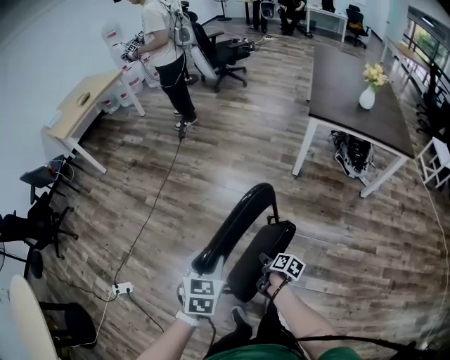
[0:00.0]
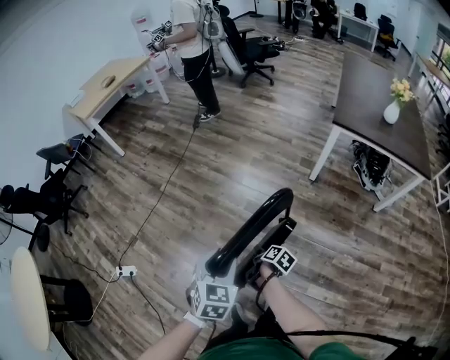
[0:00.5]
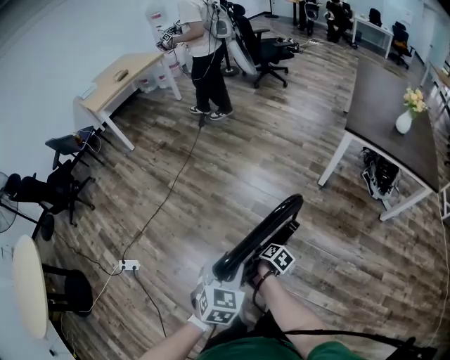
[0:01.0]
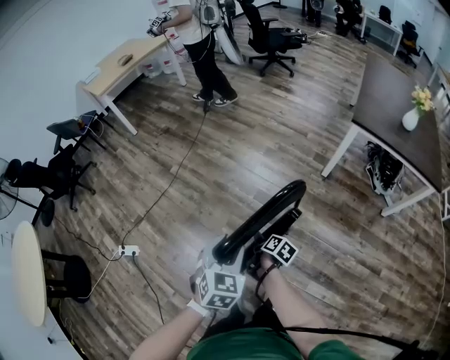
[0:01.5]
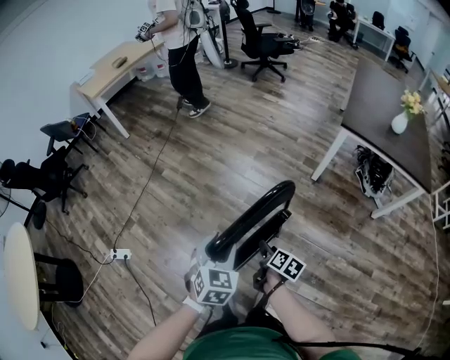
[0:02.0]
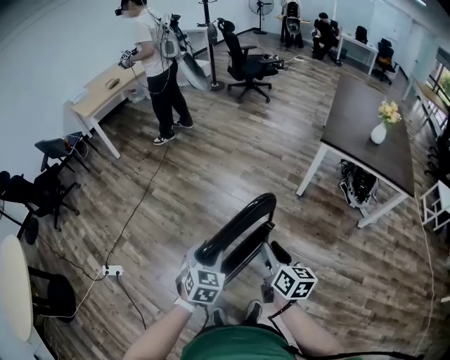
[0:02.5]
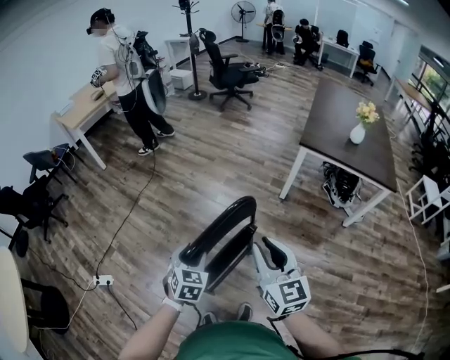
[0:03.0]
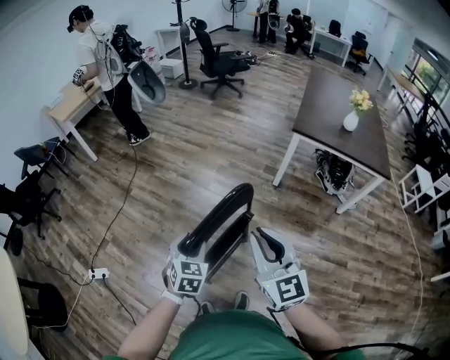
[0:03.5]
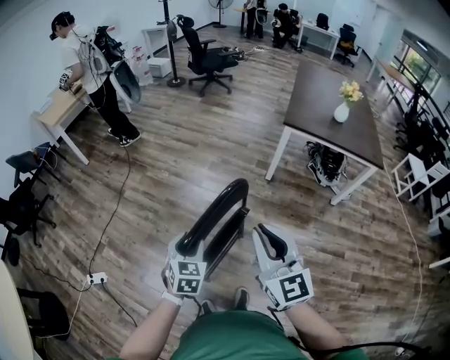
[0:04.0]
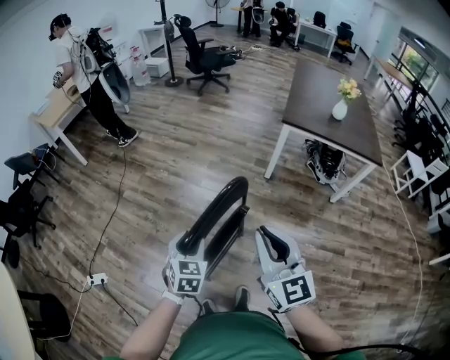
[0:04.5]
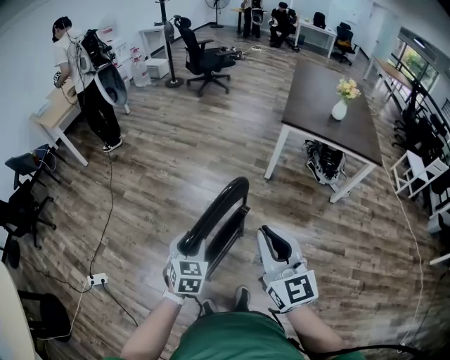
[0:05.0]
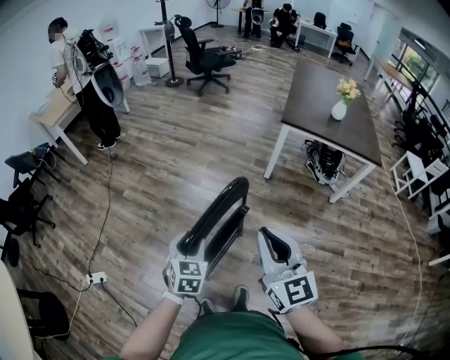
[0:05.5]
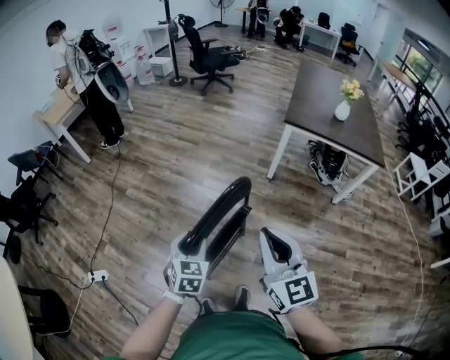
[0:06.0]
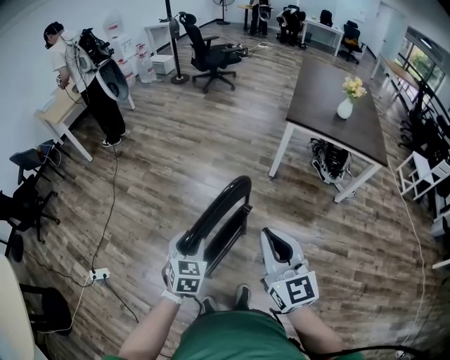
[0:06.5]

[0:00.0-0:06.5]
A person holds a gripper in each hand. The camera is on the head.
0:00.0 to 0:02.0: The right gripper shifts roughly 10 cm upward.
0:02.0 to 0:04.5: The right gripper moves upward, about 35 cm, twists approximately 60 degrees counterclockwise, seen from behind, and closes its fingers.
0:04.5 to 0:06.5: The grippers make only small movements.

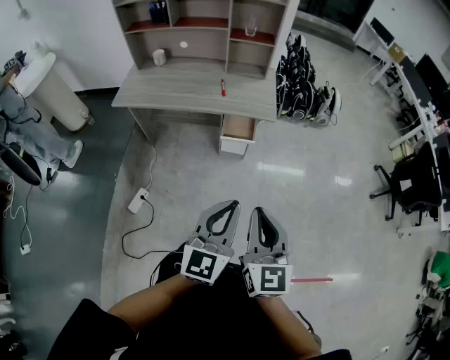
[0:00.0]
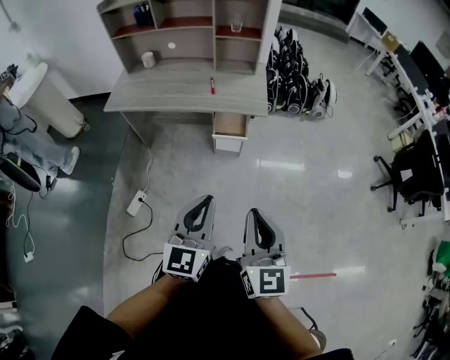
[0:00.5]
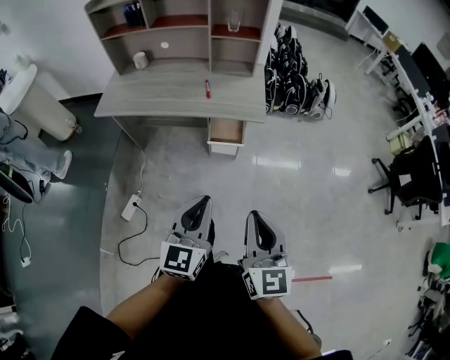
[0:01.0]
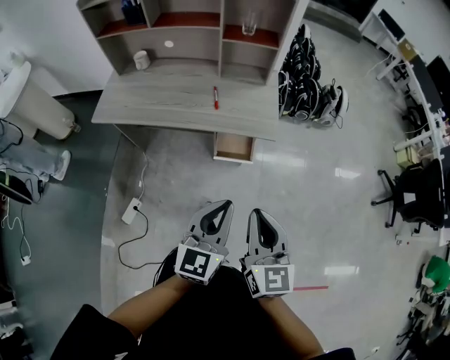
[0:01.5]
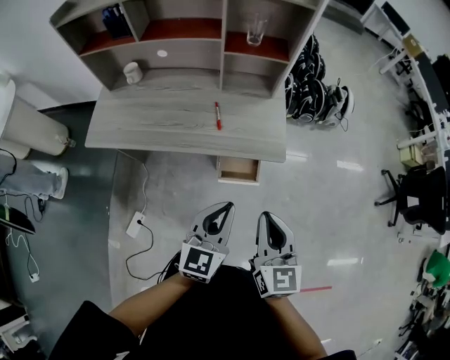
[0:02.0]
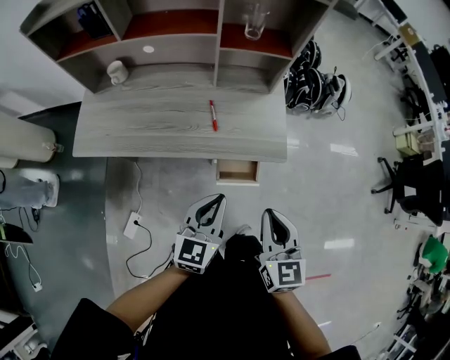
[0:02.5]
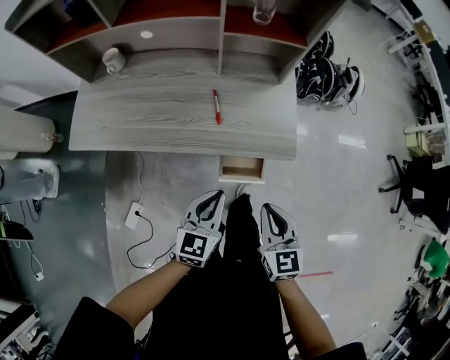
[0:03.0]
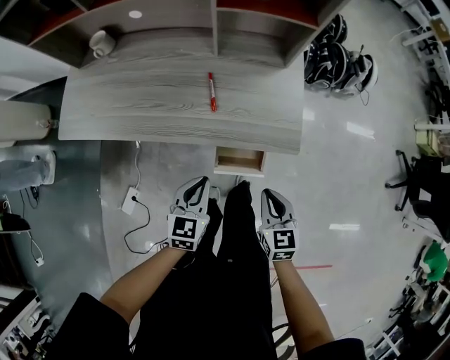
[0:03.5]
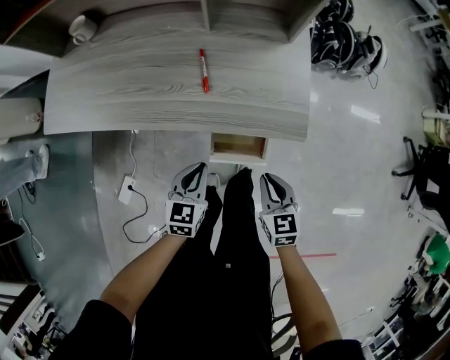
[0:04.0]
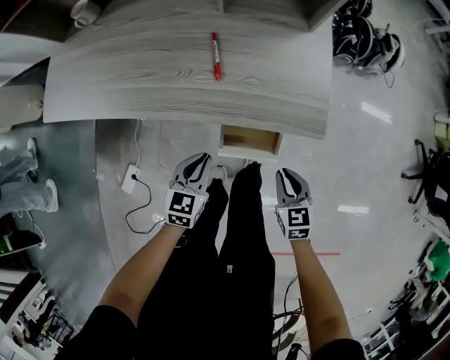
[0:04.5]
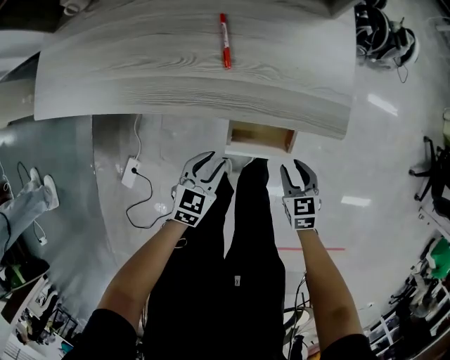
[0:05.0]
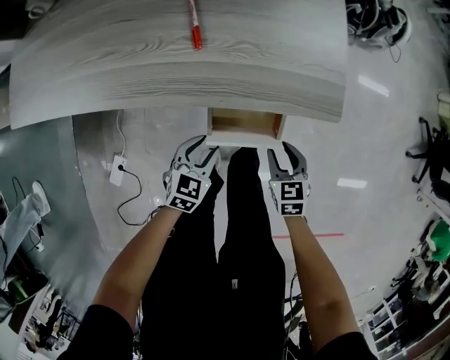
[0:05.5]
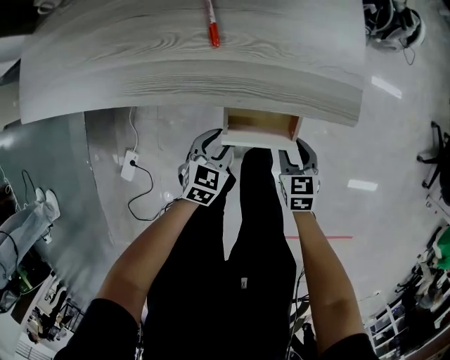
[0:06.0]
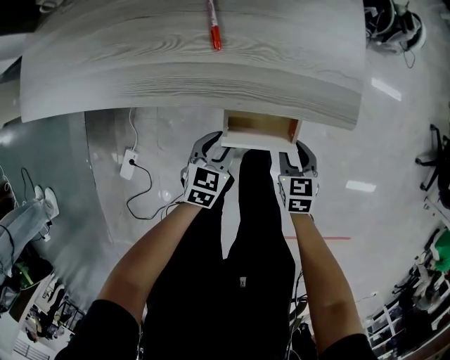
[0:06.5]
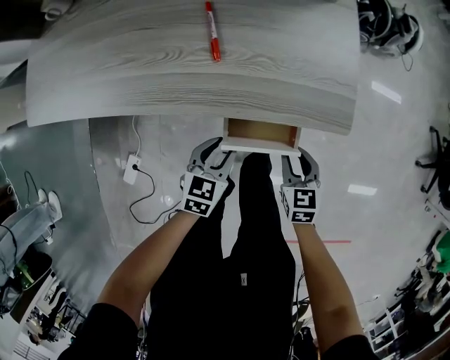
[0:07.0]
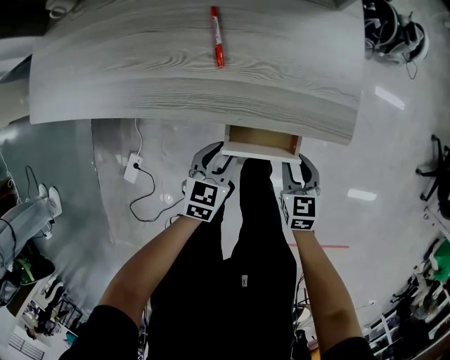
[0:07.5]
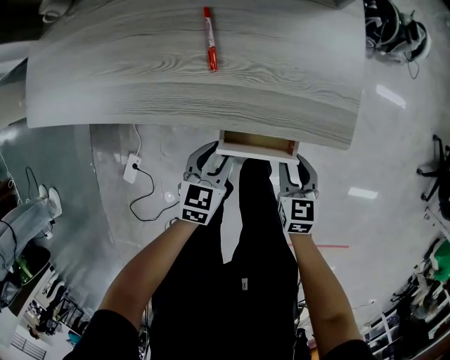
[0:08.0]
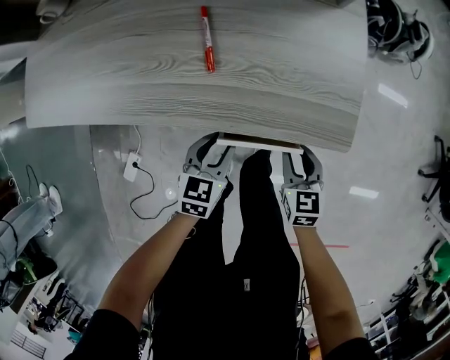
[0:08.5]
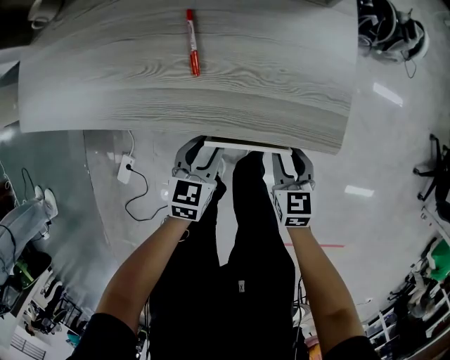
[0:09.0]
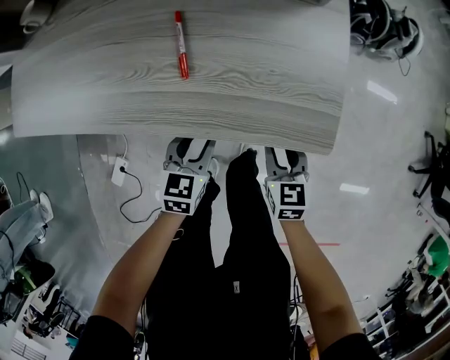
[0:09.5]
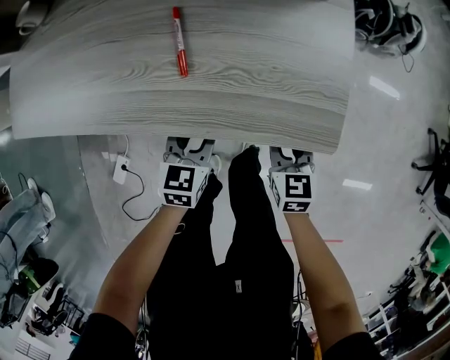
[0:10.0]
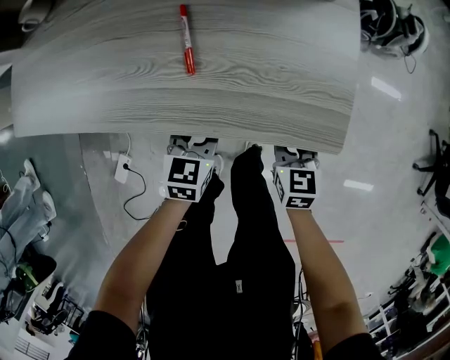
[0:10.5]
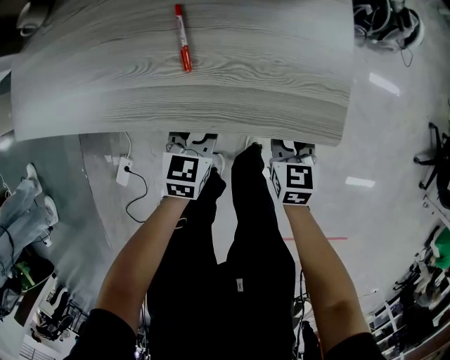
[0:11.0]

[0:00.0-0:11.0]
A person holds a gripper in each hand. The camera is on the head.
0:00.0 to 0:02.0: The two grippers go some 35 cm forward.
0:02.0 to 0:03.5: The left gripper moves downward and forward, approximately 25 cm, and rotates some 20 degrees. The right gripper heads downward, covering some 25 cm, and rotates roughly 20 degrees.
0:03.5 to 0:05.5: The two grippers go some 25 cm downward. The left gripper turns by approximately 20 degrees, and opens its fingers. The right gripper opens up.
0:05.5 to 0:07.5: The left gripper changes place by about 5 cm.
0:07.5 to 0:09.0: There are only small adjustments of the grippers.
0:09.0 to 0:11.0: Both grippers travel together forward, roughly 5 cm.

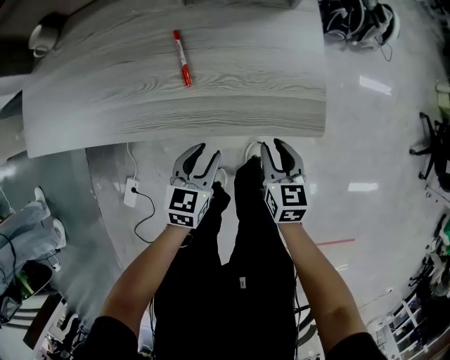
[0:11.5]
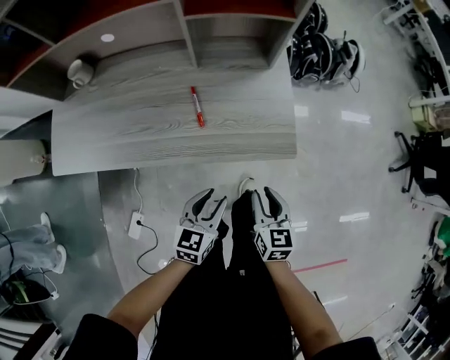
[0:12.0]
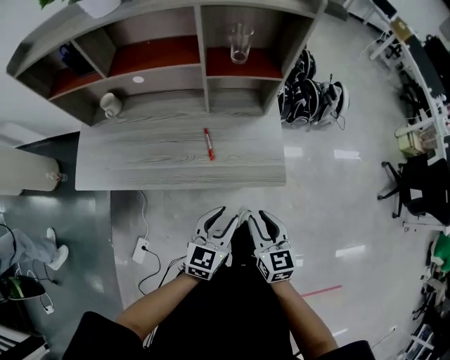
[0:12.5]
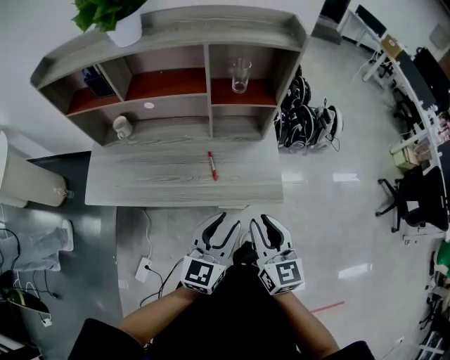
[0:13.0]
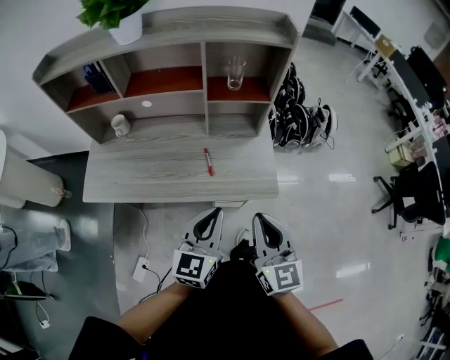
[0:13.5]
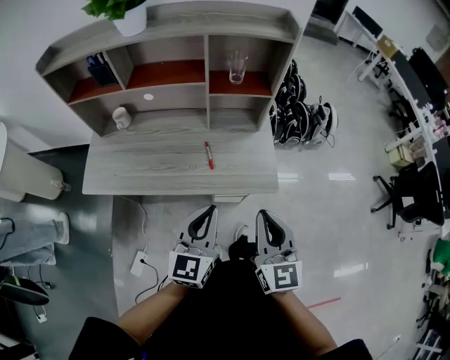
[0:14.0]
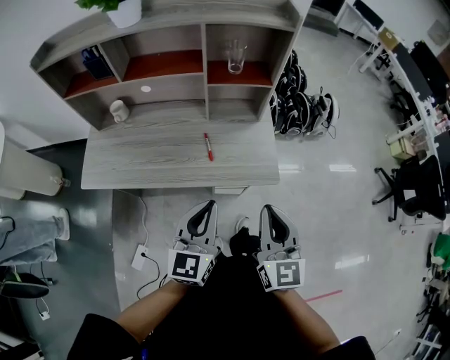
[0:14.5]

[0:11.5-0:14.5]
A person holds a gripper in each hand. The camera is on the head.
0:11.5 to 0:13.0: The grippers both shift upward by about 40 cm. The right gripper rotates roughly 30 degrees; the left gripper rotates some 30 degrees.
0:13.0 to 0:14.5: The left gripper moves roughly 5 cm, and closes up, while the right gripper moves about 5 cm, and closes up.

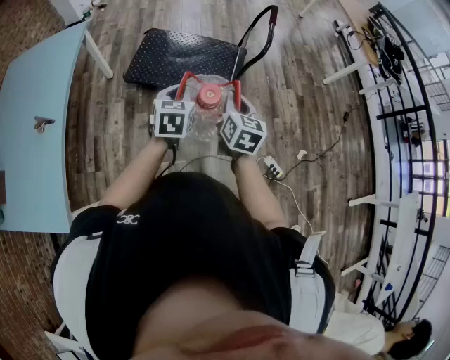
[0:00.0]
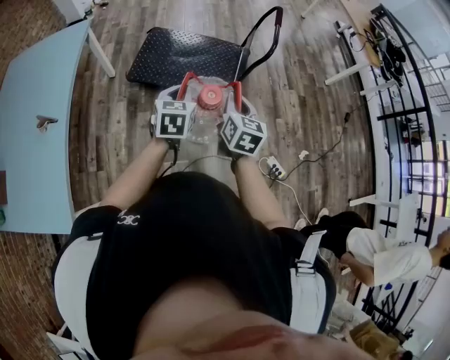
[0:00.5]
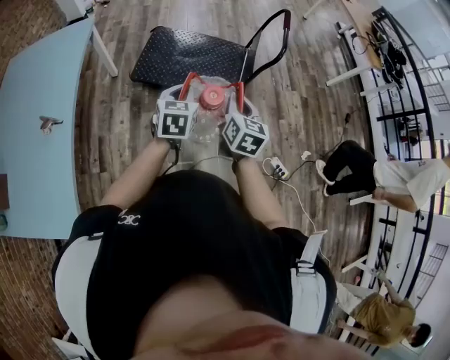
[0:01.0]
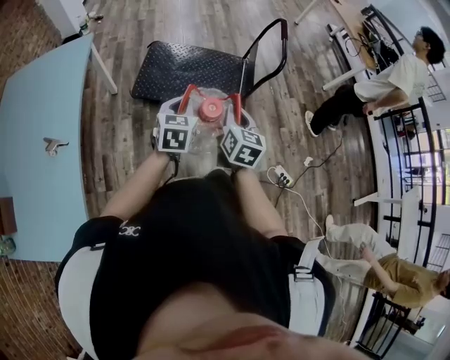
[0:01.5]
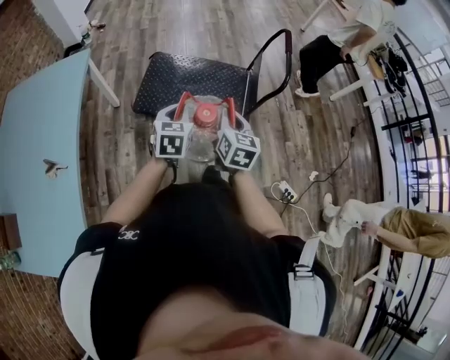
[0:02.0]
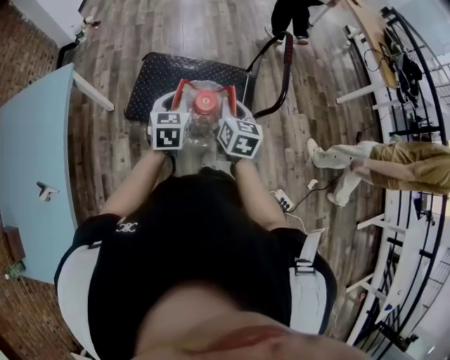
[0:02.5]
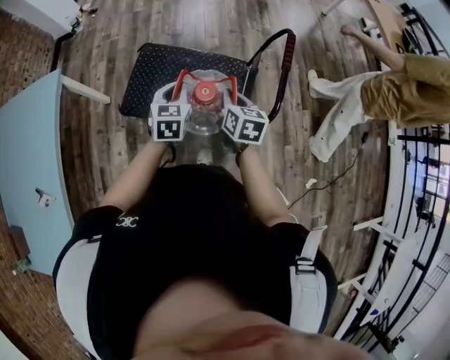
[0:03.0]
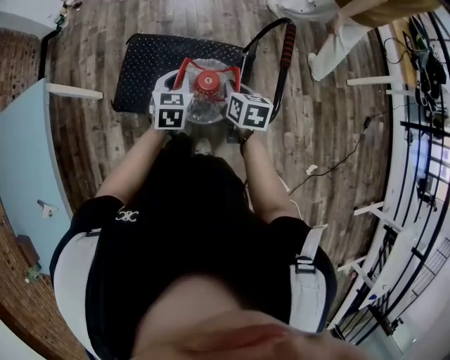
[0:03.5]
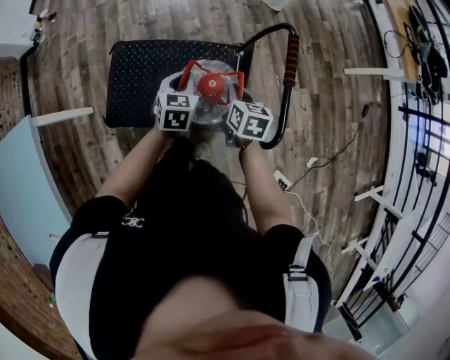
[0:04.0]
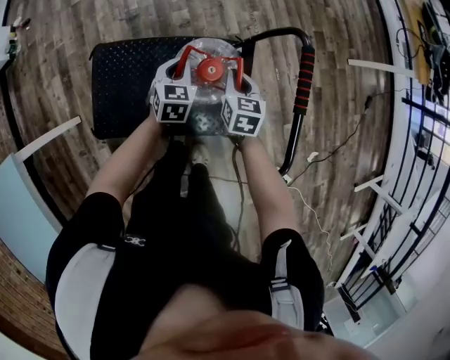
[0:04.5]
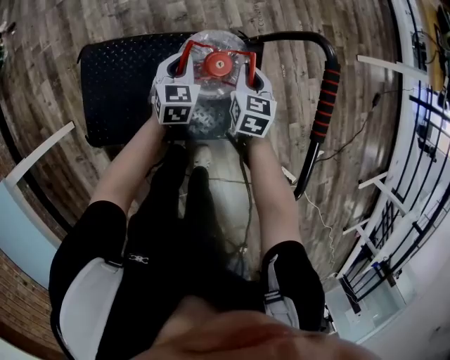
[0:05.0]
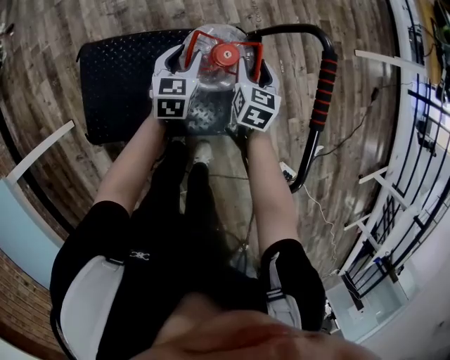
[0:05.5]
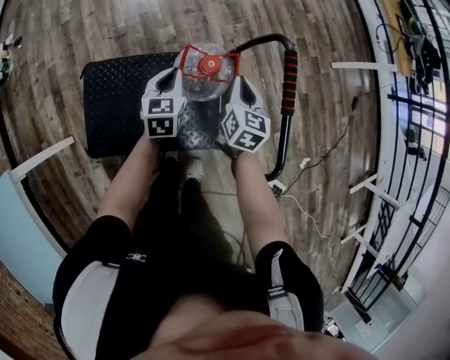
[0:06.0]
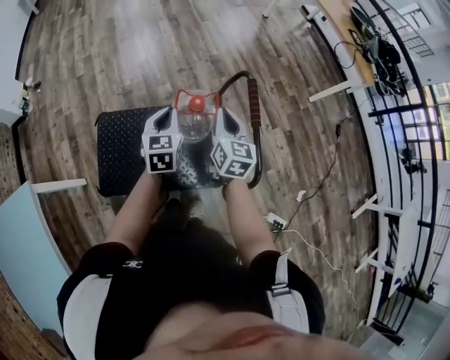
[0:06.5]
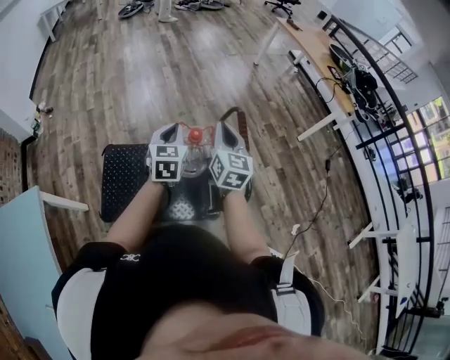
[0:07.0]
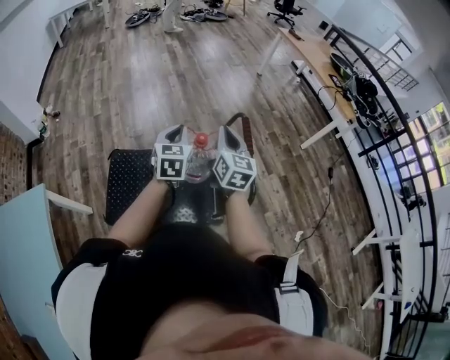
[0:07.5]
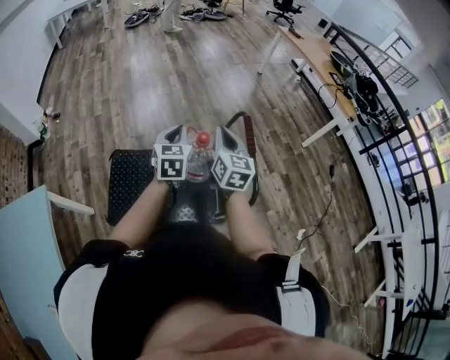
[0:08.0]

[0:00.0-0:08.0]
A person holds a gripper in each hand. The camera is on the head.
0:00.0 to 0:02.0: The right gripper travels to the left and forward by some 15 cm. The left gripper shifts approximately 15 cm forward and to the left.
0:02.0 to 0:04.0: The two grippers travel together, forward and to the right, some 50 cm. The right gripper turns by approximately 30 degrees.
0:04.0 to 0:06.0: Both grippers travel together forward, about 10 cm. The left gripper goes downward and returns, about 20 cm each way, and opens and closes again. Meanwhile the right gripper rotates some 20 degrees, and opens, then closes once more.
0:06.0 to 0:08.0: The two grippers go approximately 30 cm upward and backward. The right gripper changes its angle by about 20 degrees.
